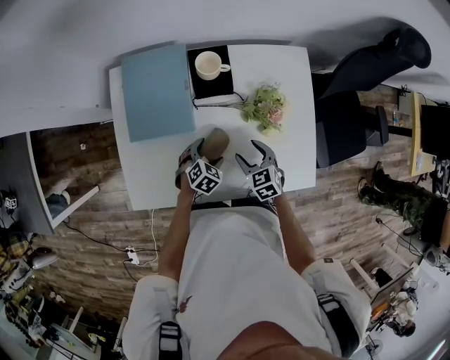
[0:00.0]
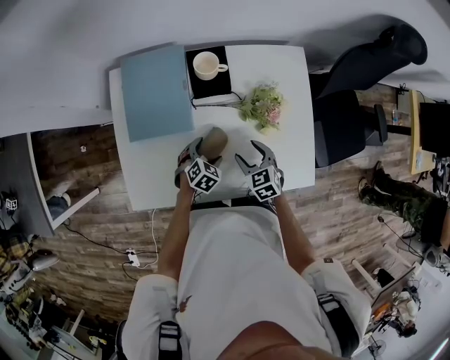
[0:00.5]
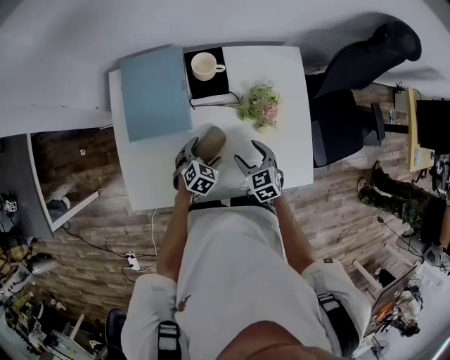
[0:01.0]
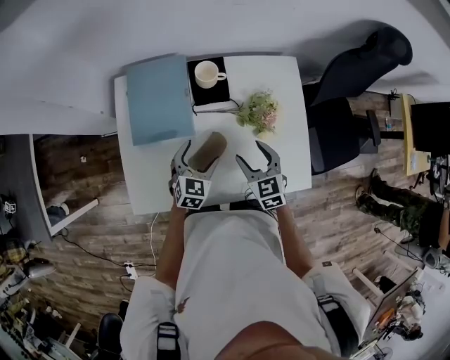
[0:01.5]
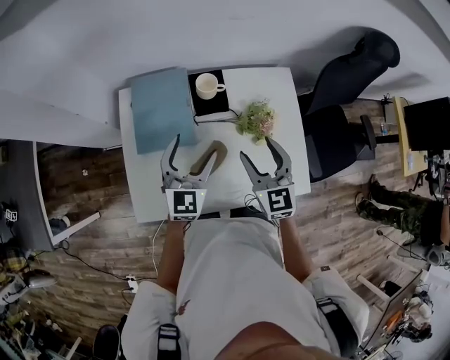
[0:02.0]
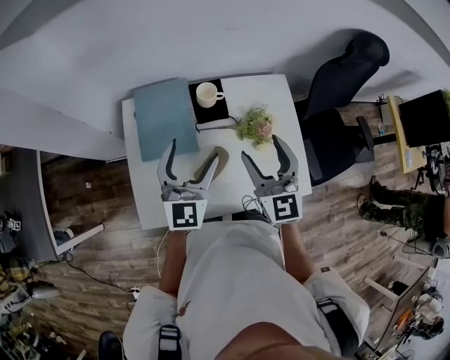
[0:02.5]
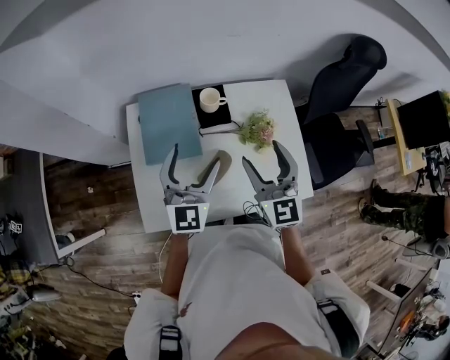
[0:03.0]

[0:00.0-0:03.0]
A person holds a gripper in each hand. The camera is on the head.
0:00.0 to 0:01.5: Both grippers travel together upward, approximately 10 cm. The left gripper swivels roughly 30 degrees.
0:01.5 to 0:03.0: Both grippers move upward, about 25 cm. The right gripper turns by some 30 degrees; the left gripper points its fingers some 30 degrees further upward.

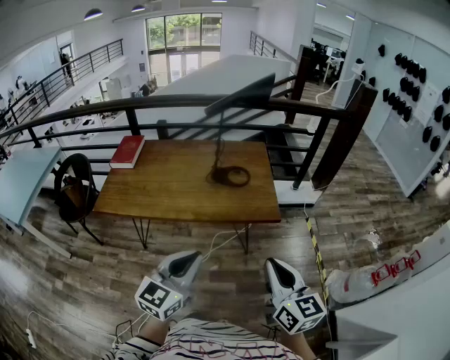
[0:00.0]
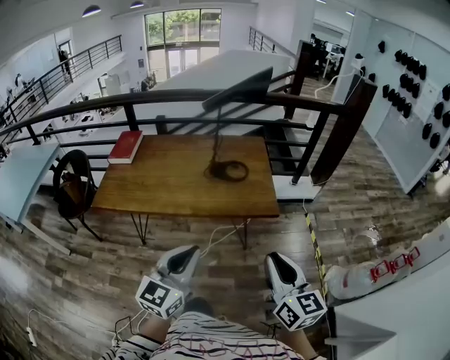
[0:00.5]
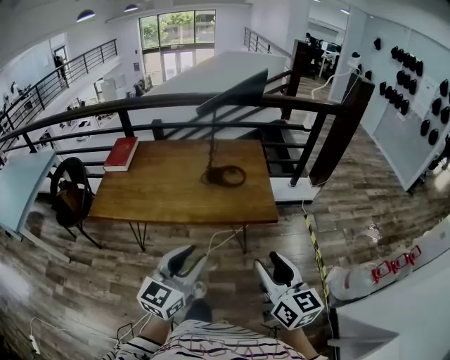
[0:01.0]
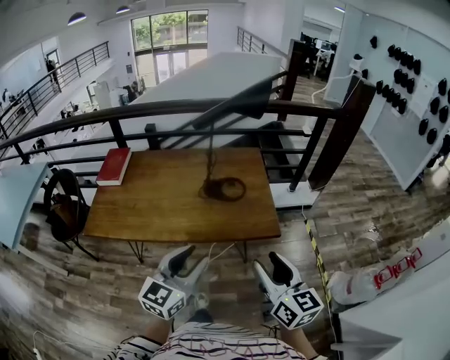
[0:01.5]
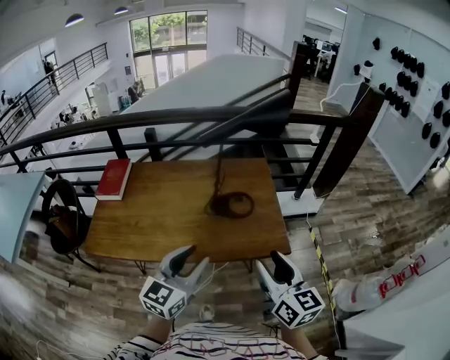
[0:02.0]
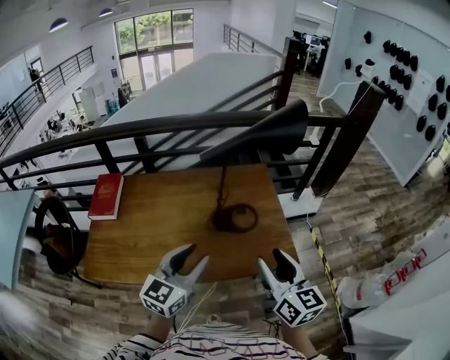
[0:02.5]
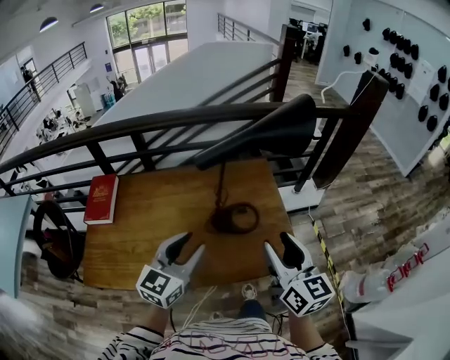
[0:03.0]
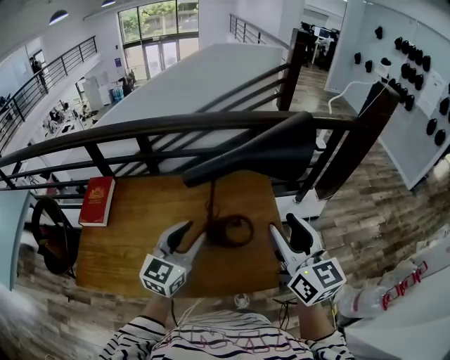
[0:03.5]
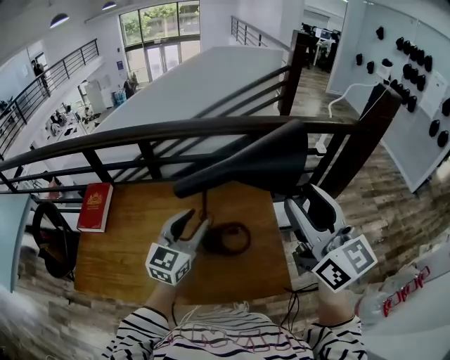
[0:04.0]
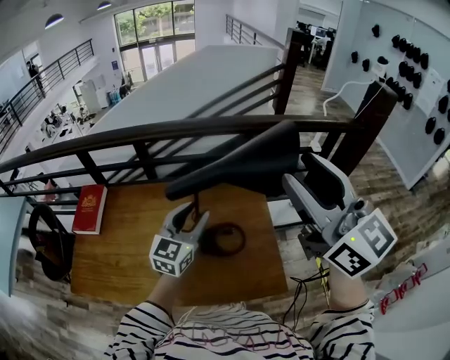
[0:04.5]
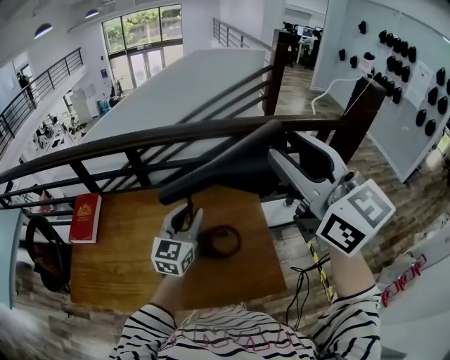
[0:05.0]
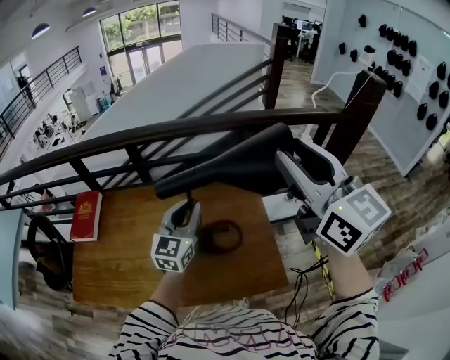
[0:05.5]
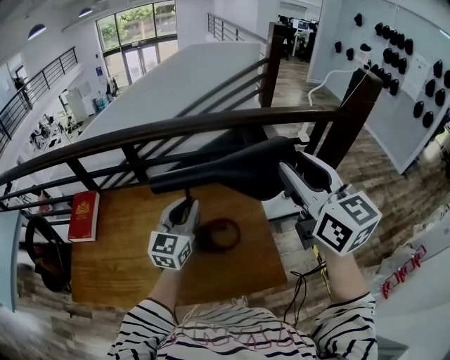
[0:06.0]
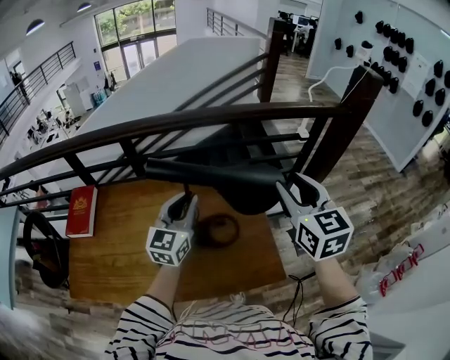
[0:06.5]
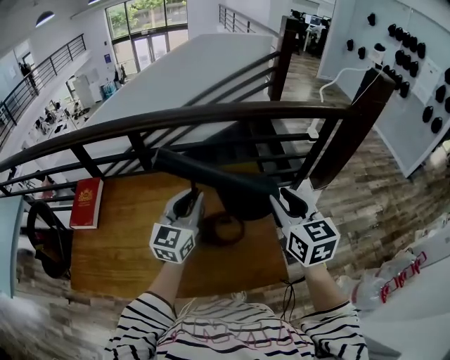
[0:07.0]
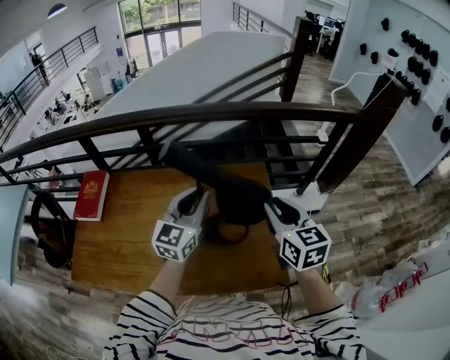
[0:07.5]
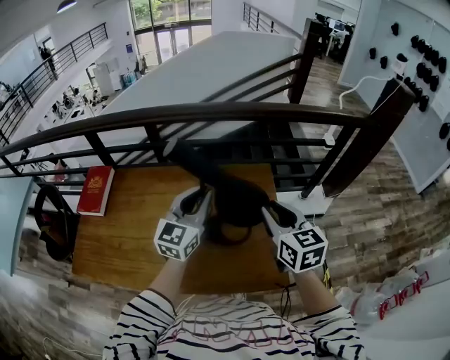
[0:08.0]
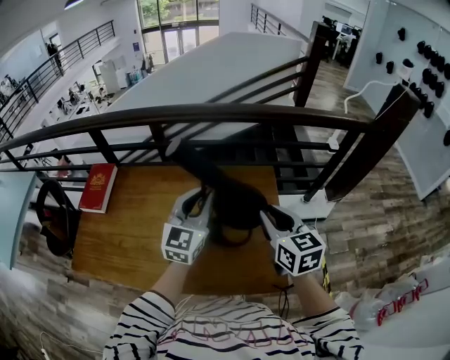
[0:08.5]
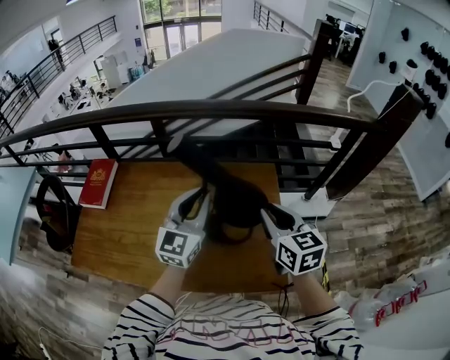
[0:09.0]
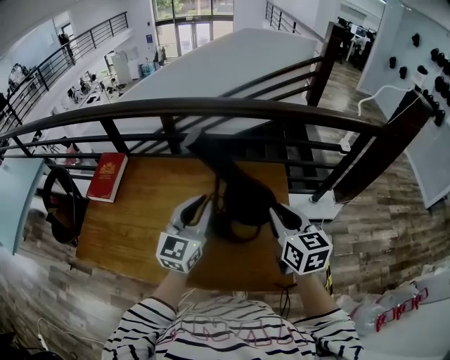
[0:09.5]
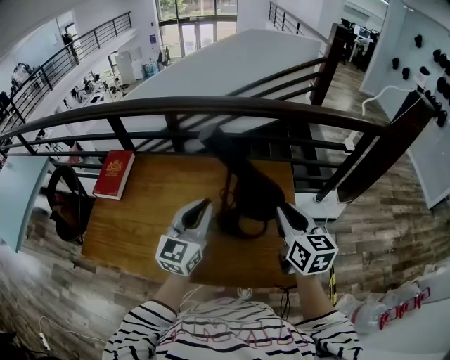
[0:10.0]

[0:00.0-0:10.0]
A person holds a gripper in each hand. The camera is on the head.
0:00.0 to 0:02.0: The grippers both shift forward by approximately 25 cm. The left gripper opens its fingers. The right gripper opens up.
0:02.0 to 0:04.0: The left gripper moves forward, some 35 cm. The right gripper shifts roughly 35 cm forward and upward, and turns by approximately 20 degrees.
0:04.0 to 0:06.0: The right gripper moves some 10 cm upward and comes back. The left gripper moves some 5 cm, and closes up.
0:06.0 to 0:08.0: The right gripper moves downward, about 20 cm.
0:08.0 to 0:10.0: The left gripper moves backward and to the left, roughly 10 cm.

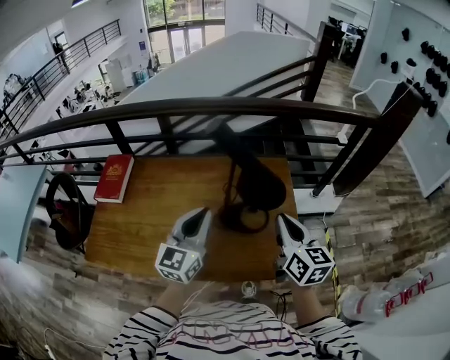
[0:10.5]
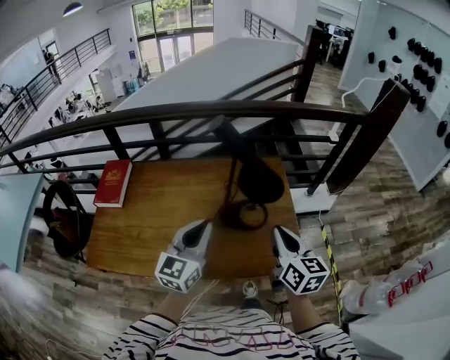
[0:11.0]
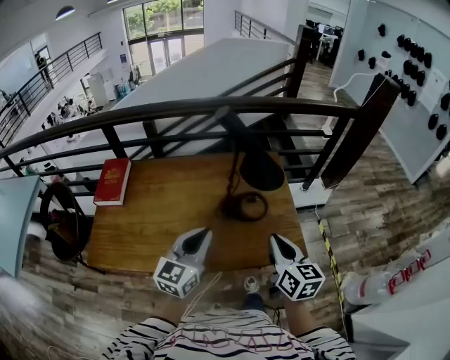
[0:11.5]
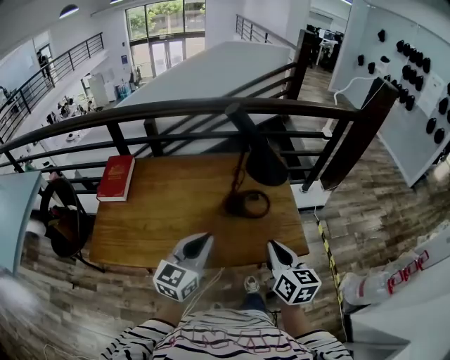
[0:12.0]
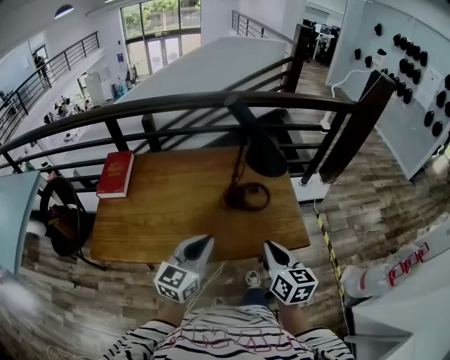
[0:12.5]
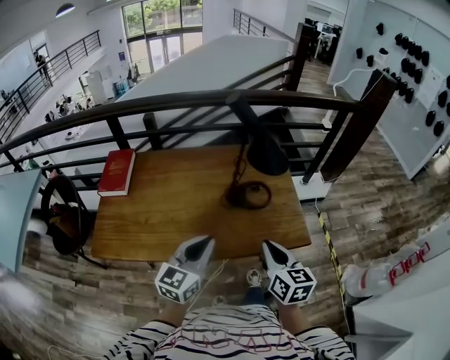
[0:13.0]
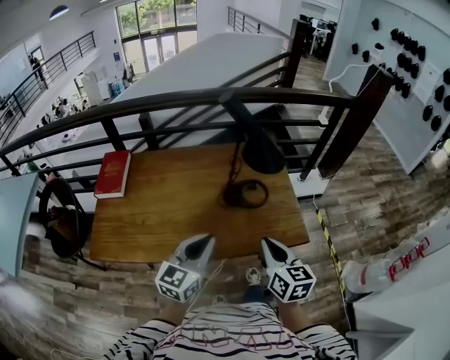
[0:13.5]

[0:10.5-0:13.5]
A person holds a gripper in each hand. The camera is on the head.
0:10.5 to 0:12.0: Both grippers move backward, about 20 cm.
0:12.0 to 0:13.5: The grippers stay close to where they were, moving slightly.

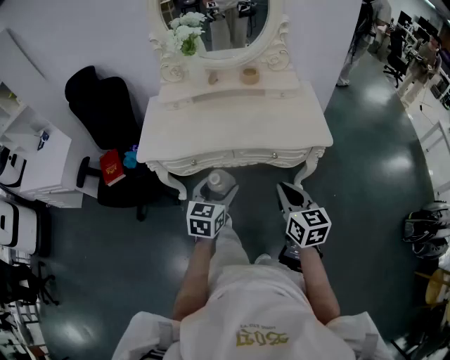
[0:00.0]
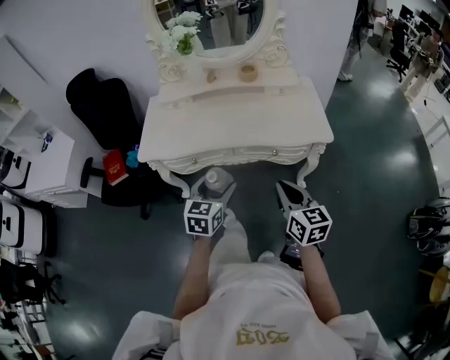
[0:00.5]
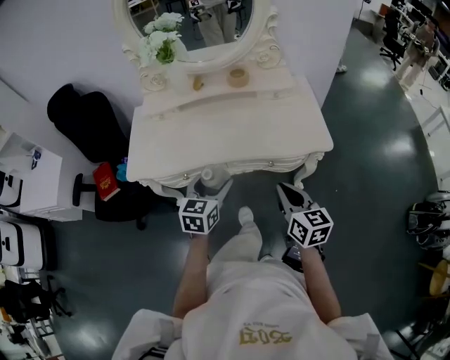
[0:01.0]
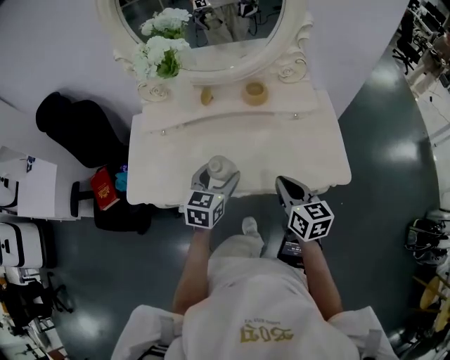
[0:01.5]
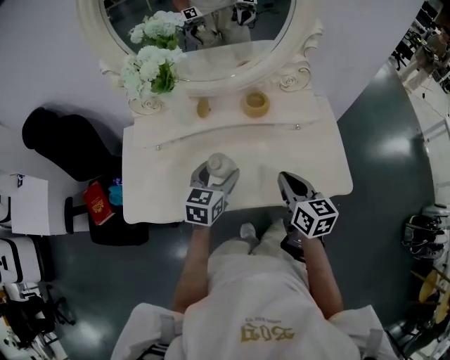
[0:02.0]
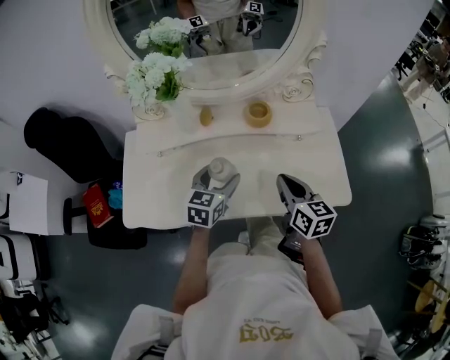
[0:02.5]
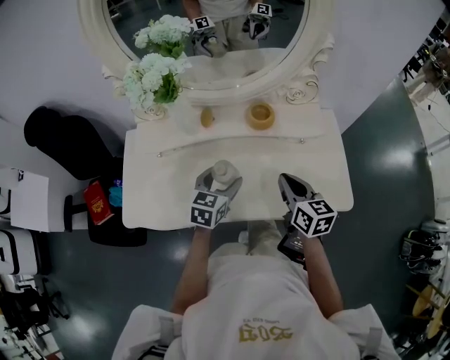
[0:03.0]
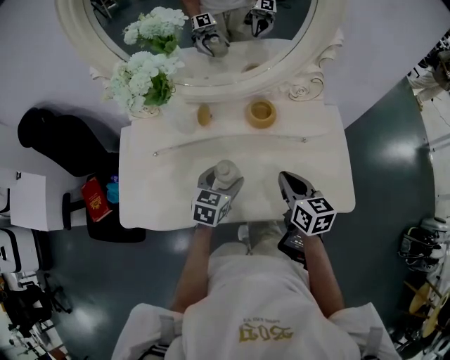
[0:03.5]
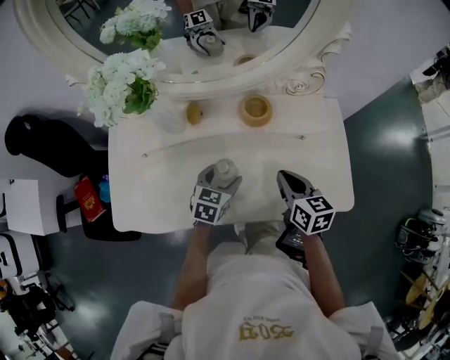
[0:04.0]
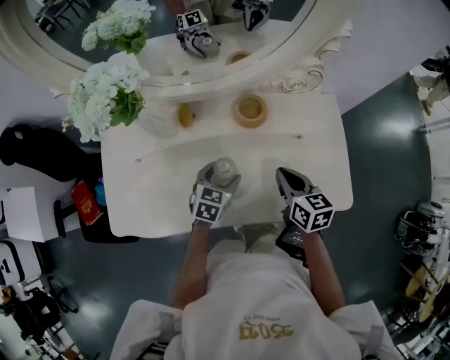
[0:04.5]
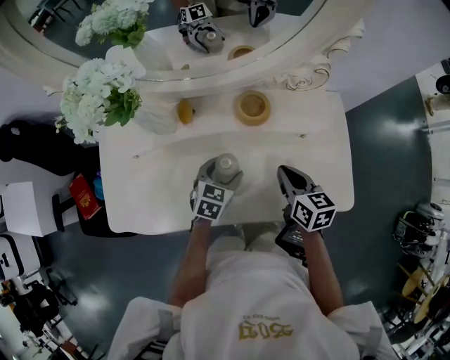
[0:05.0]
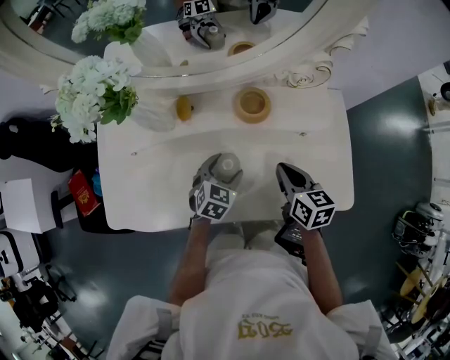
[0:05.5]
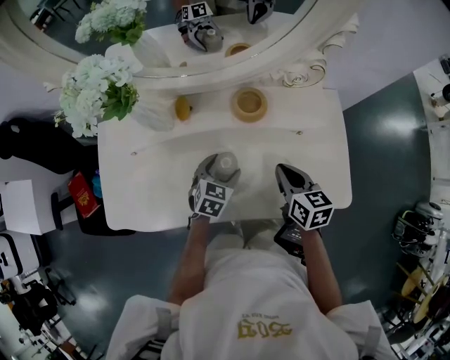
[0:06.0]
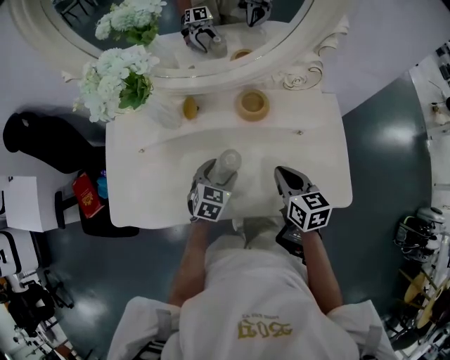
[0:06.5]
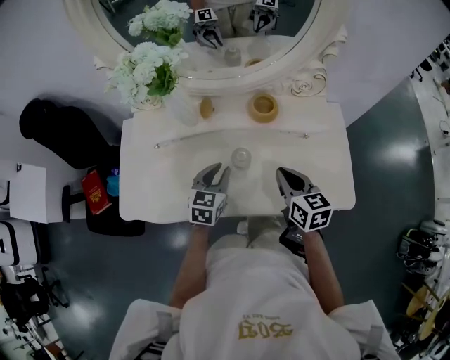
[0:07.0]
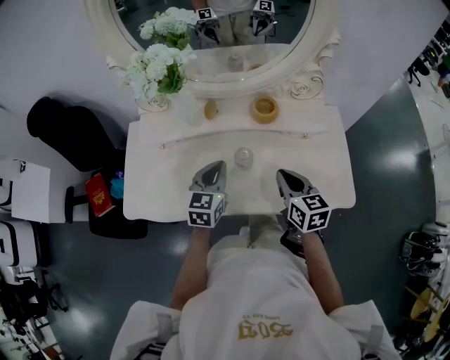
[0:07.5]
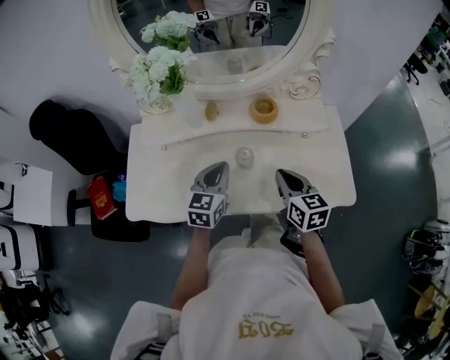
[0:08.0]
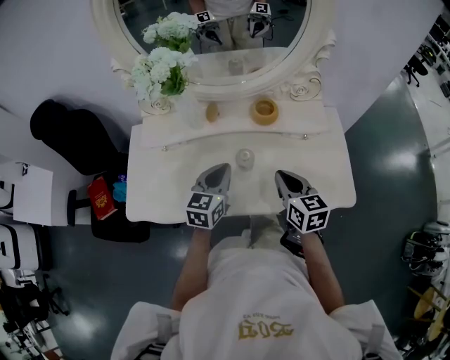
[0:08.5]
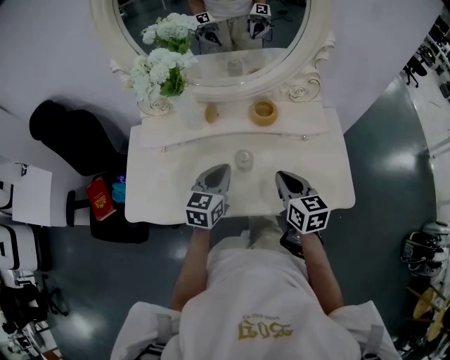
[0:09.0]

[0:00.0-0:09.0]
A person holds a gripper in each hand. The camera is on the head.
0:00.0 to 0:02.0: The two grippers go roughly 35 cm forward.
0:02.0 to 0:04.5: The left gripper travels downward and forward by approximately 15 cm; the right gripper is displaced forward and downward by approximately 15 cm.
0:04.5 to 0:07.0: The right gripper ends up roughly 5 cm from where it was, while the left gripper goes approximately 10 cm upward and to the left, and closes.
0:07.0 to 0:09.0: The left gripper goes about 5 cm upward.

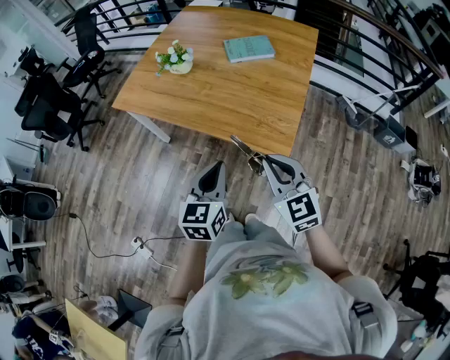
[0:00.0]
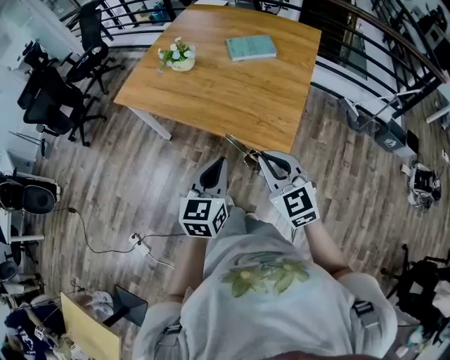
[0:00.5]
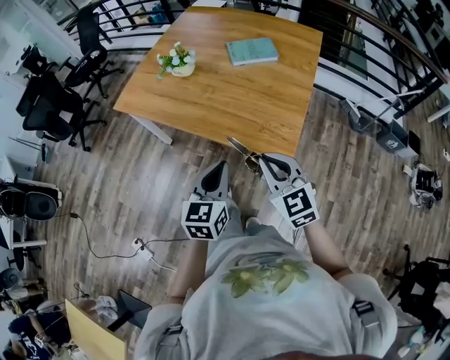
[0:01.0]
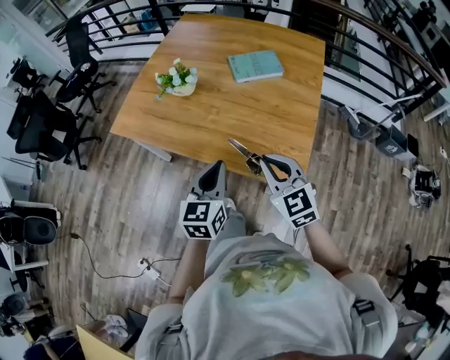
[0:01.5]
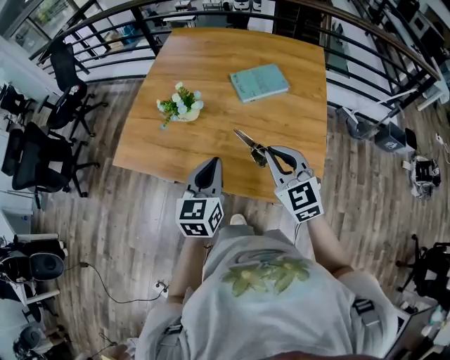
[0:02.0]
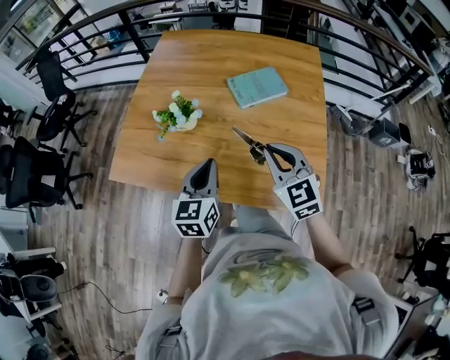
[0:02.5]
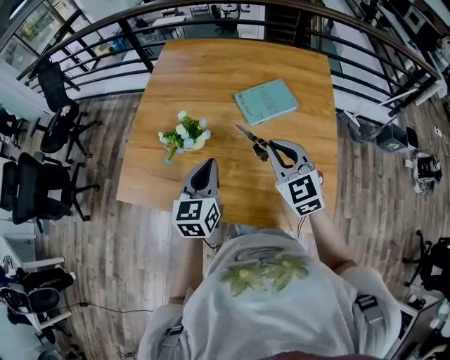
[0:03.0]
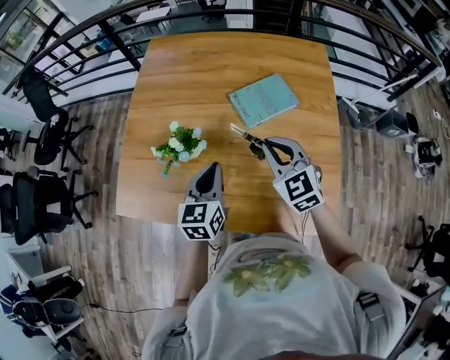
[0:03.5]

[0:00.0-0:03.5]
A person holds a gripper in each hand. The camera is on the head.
0:00.0 to 0:02.0: The two grippers go about 30 cm forward.
0:02.0 to 0:03.5: Both grippers travel together forward, roughly 20 cm.
